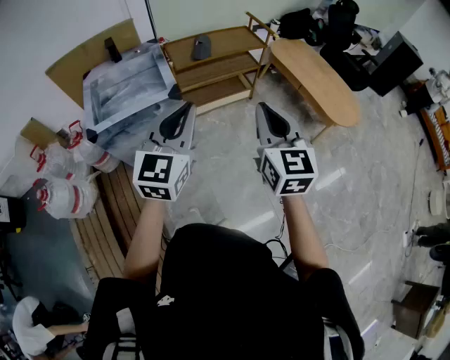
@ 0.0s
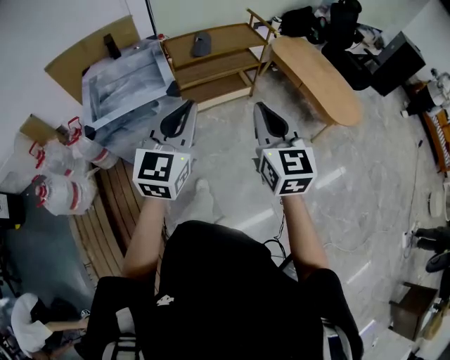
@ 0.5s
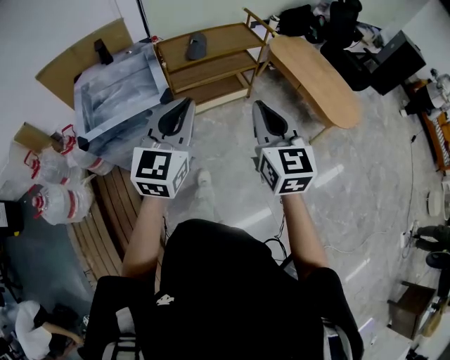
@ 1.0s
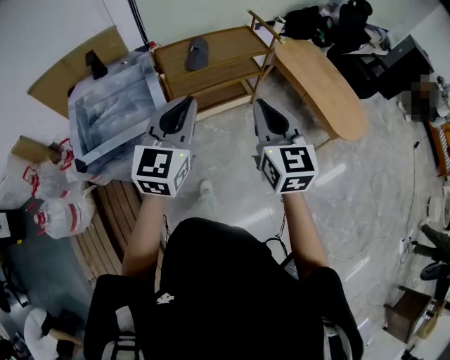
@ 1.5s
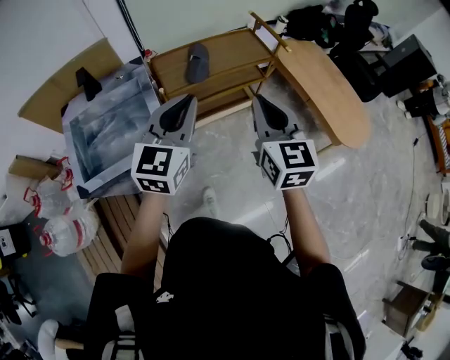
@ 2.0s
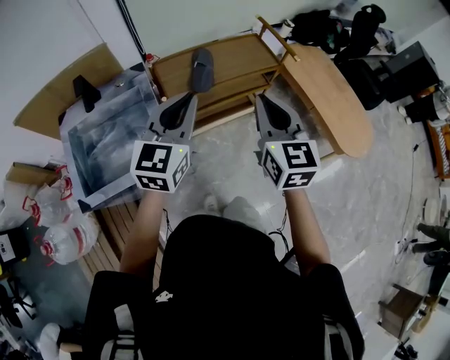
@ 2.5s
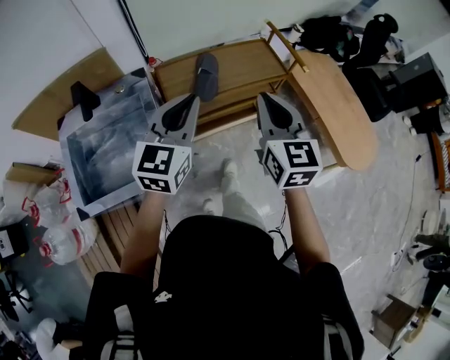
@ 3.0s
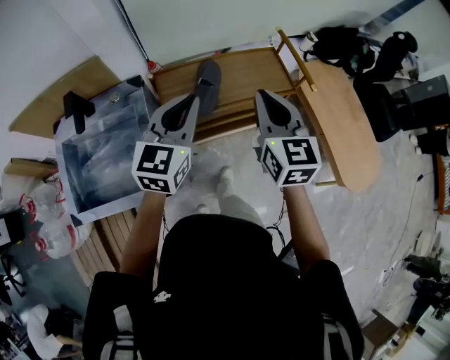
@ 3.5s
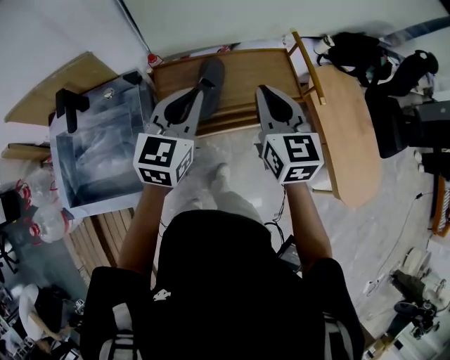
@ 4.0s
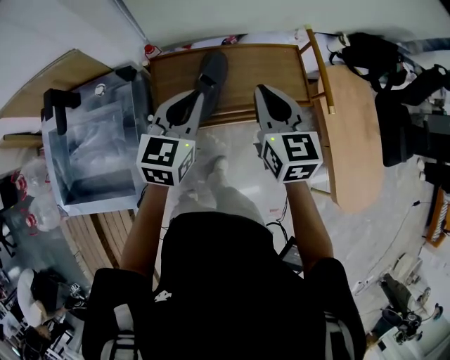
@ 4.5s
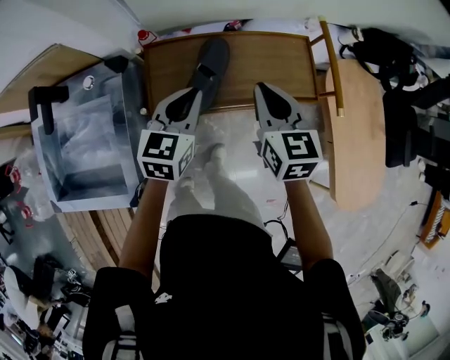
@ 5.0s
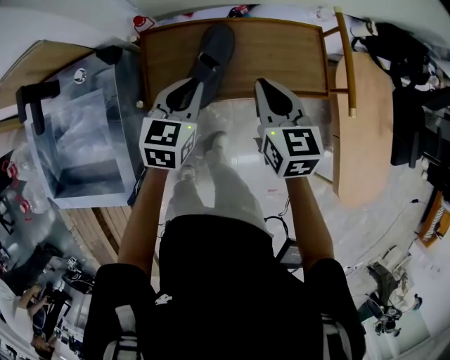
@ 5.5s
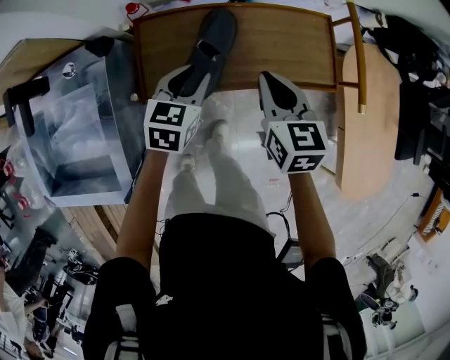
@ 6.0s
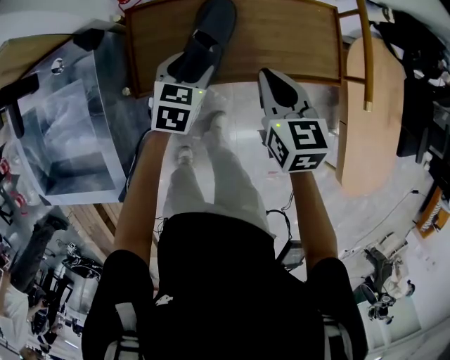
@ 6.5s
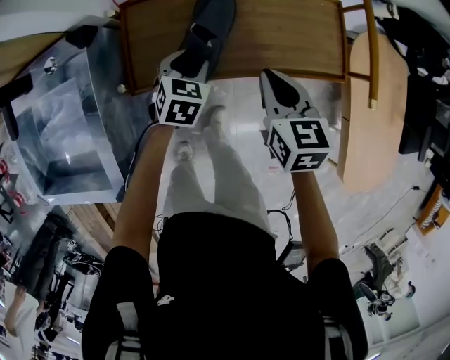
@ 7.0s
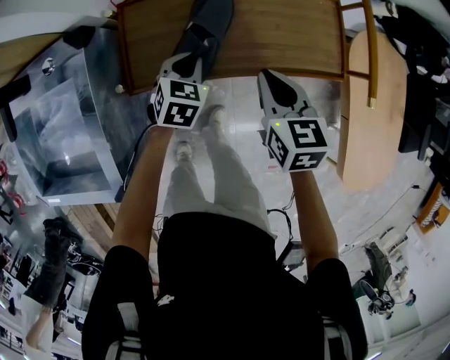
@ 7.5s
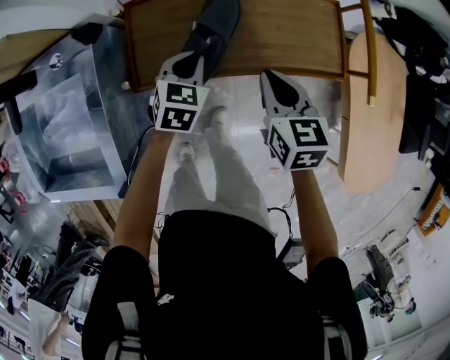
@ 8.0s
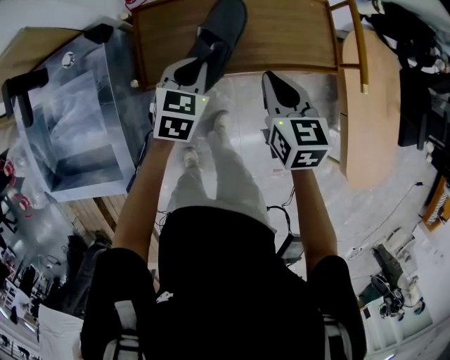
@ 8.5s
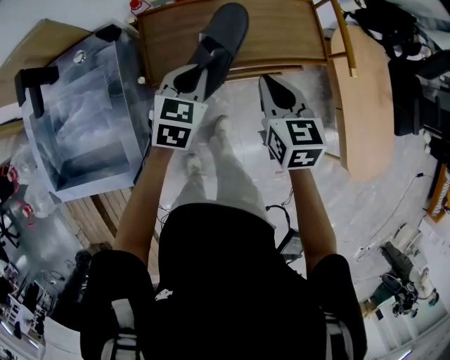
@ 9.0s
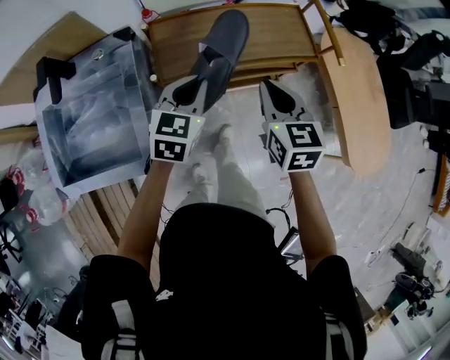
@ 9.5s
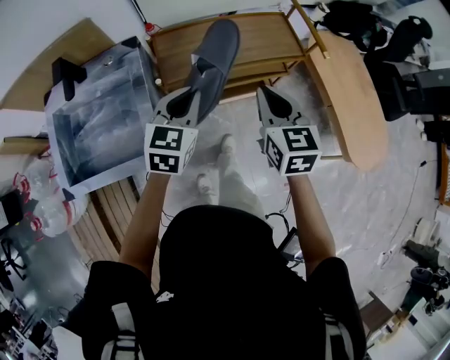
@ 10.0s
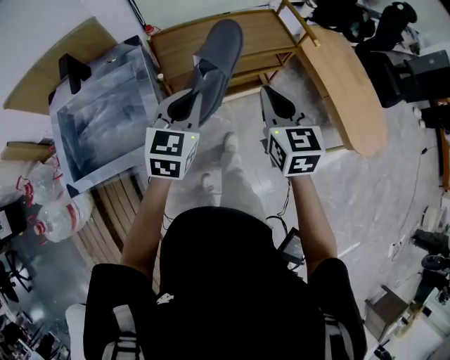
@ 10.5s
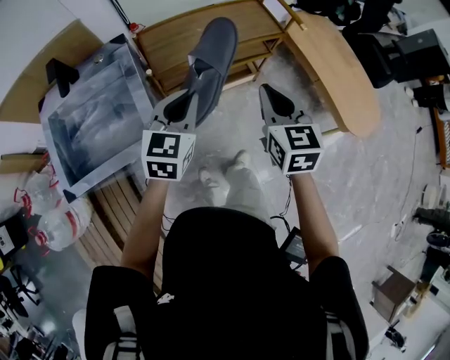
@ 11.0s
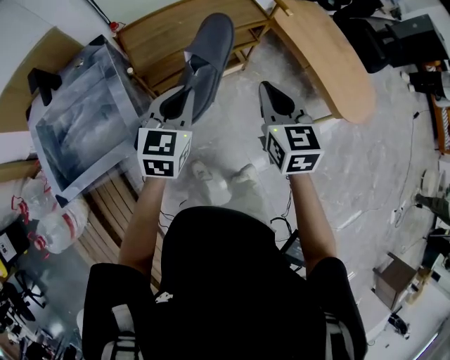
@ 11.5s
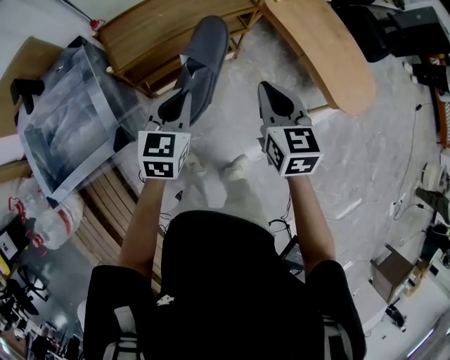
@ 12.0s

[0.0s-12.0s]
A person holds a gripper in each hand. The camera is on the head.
0.0s to 2.0s: The grippers both shift forward by roughly 30 cm.
2.0s to 4.0s: The two grippers go roughly 35 cm forward.
4.0s to 6.0s: The right gripper travels downward and forward by about 25 cm, and changes its angle by about 20 degrees. Meanwhile the left gripper goes about 30 cm downward, turns by some 30 degrees, and opens up.
6.0s to 8.0s: The right gripper shifts by approximately 5 cm. Meanwhile the left gripper goes approximately 5 cm downward, and opens, then closes again.
8.0s to 10.0s: The right gripper travels backward and upward by roughly 30 cm, and changes its angle by approximately 20 degrees; the left gripper travels upward and backward by roughly 35 cm, and turns by some 20 degrees.
10.0s to 12.0s: The grippers both shift to the right and backward by approximately 20 cm.

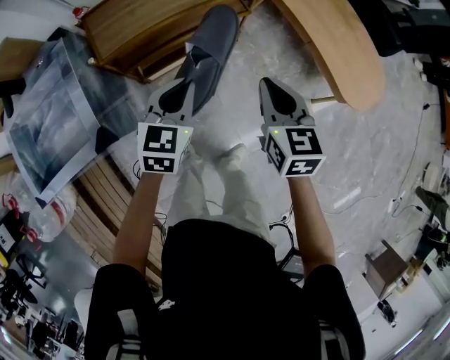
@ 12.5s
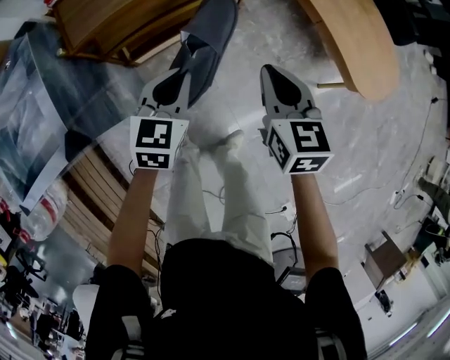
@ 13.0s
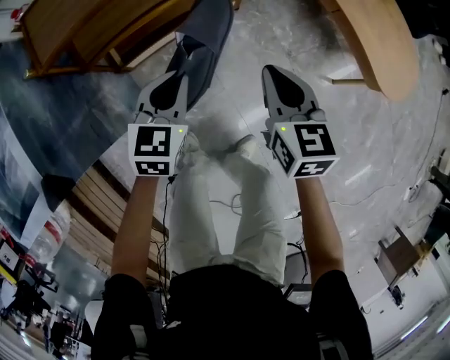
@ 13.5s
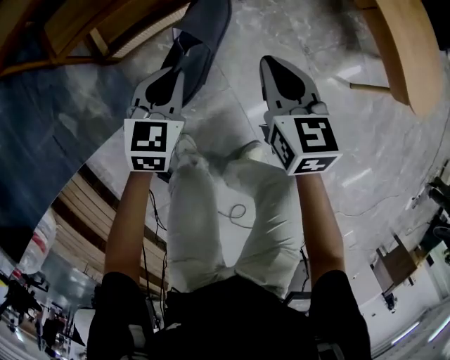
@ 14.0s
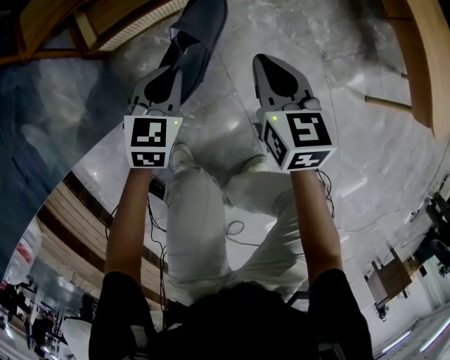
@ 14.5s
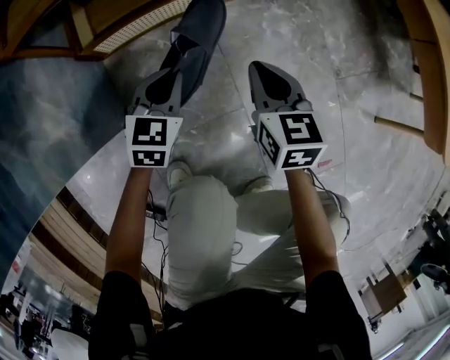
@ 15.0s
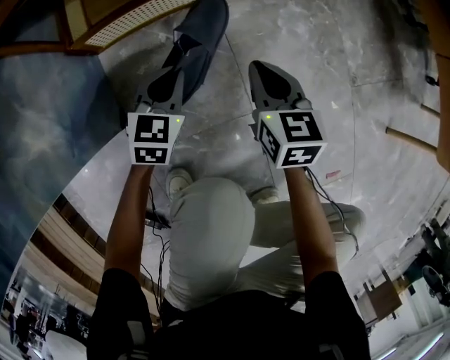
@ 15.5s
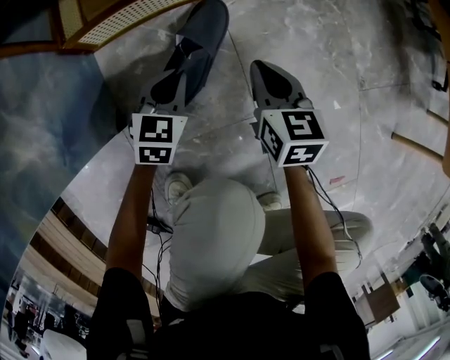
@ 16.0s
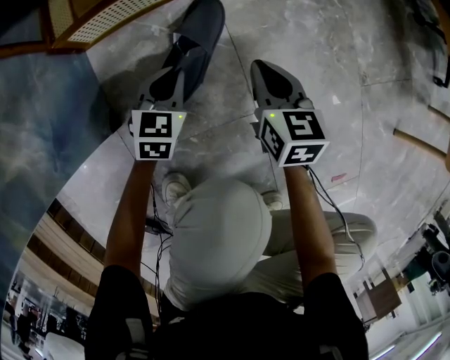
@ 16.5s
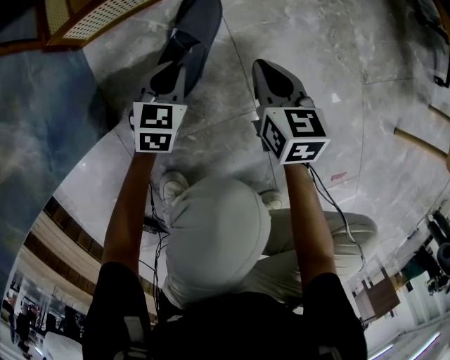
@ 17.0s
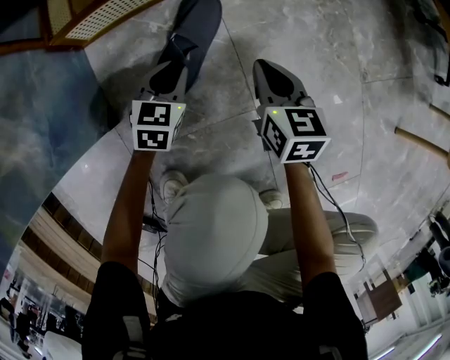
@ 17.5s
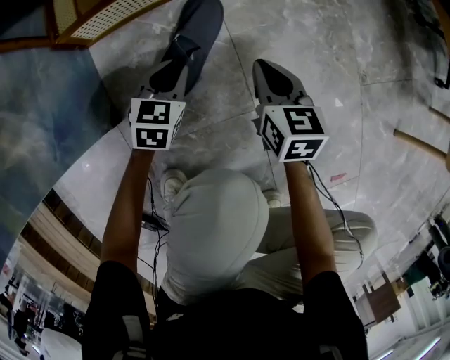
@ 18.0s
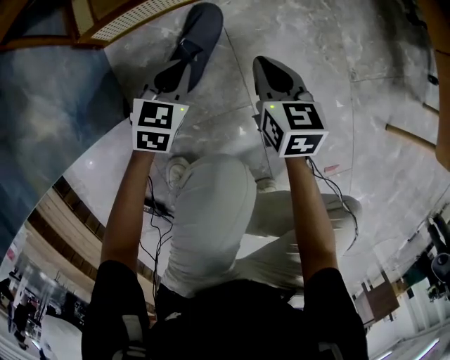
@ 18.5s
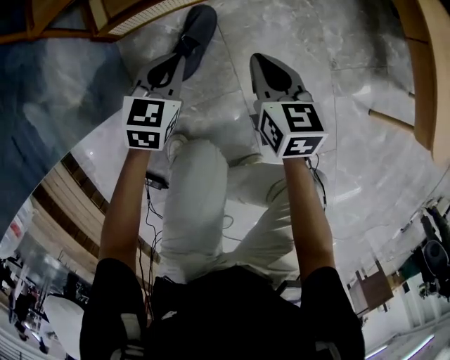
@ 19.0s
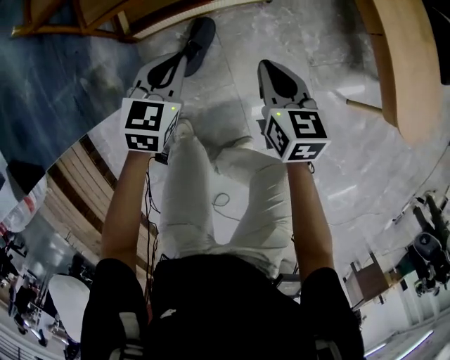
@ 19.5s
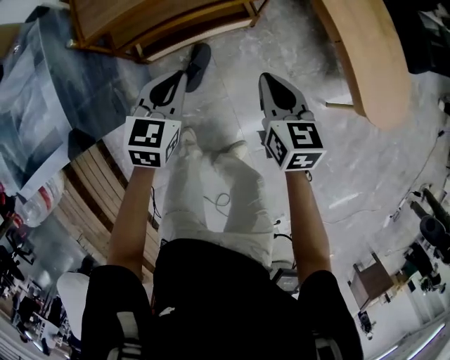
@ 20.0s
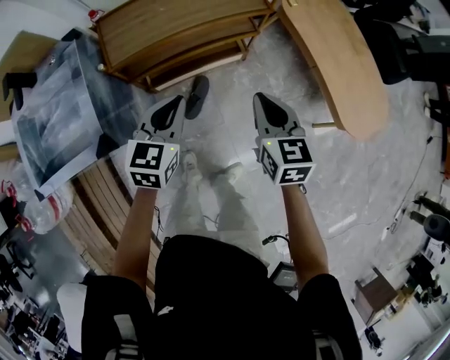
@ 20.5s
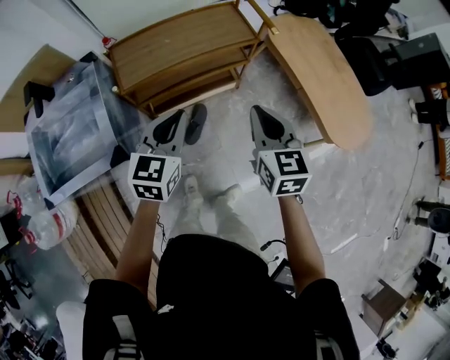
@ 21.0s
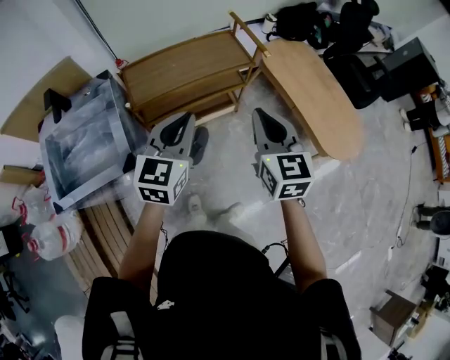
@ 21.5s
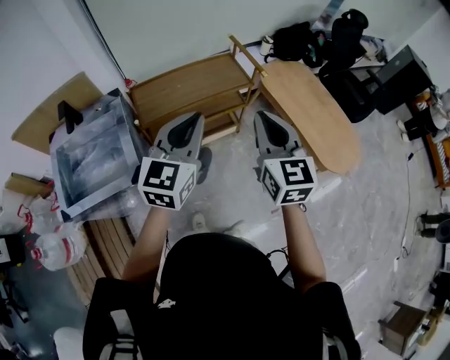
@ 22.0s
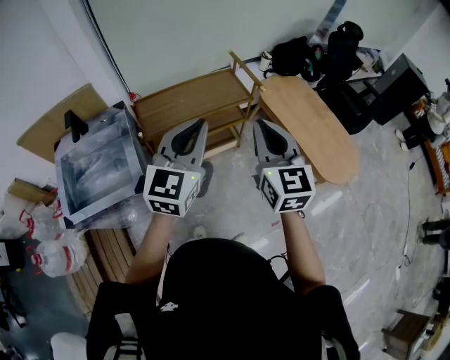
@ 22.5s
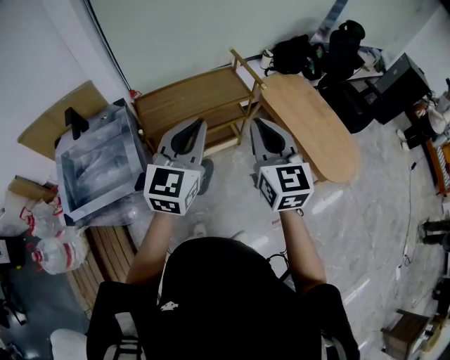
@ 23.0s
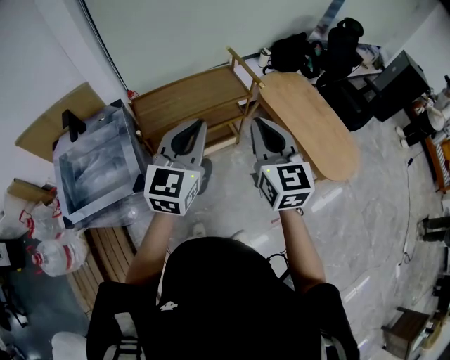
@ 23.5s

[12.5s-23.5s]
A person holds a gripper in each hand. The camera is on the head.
12.5s to 14.5s: The two grippers go about 50 cm downward.
14.5s to 16.0s: Both grippers travel together downward, some 20 cm.
16.0s to 18.0s: There are only small adjustments of the grippers.
18.0s to 20.0s: The two grippers go roughly 60 cm upward.
20.0s to 21.5s: The grippers both shift upward by some 35 cm. The right gripper turns by approximately 20 degrees; the left gripper turns by approximately 20 degrees.
21.5s to 23.5s: The two grippers go about 10 cm upward.

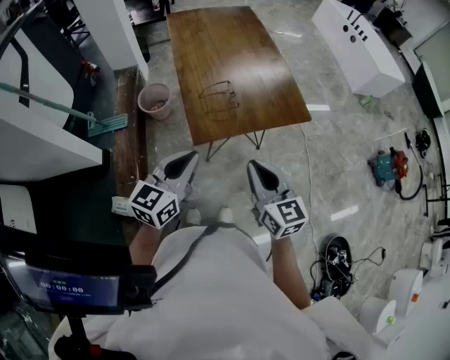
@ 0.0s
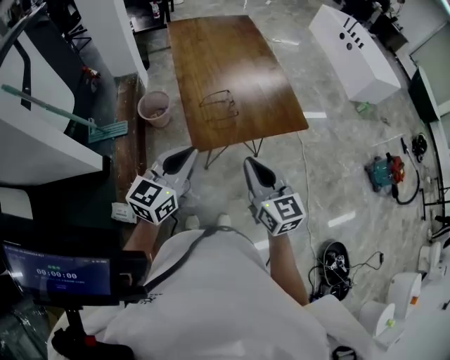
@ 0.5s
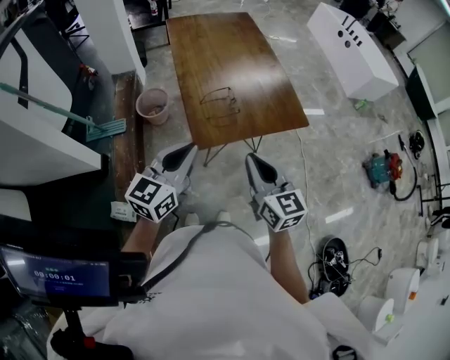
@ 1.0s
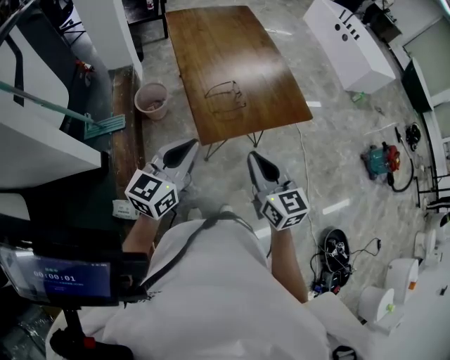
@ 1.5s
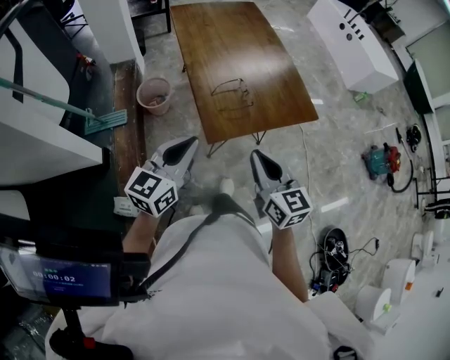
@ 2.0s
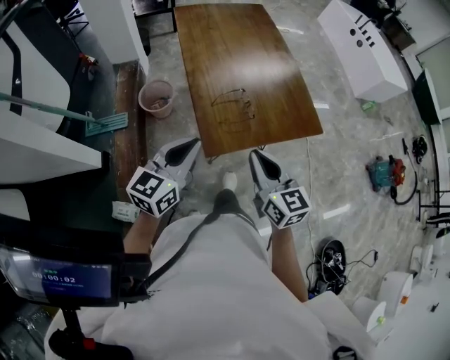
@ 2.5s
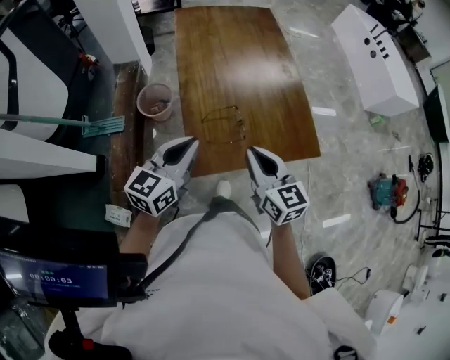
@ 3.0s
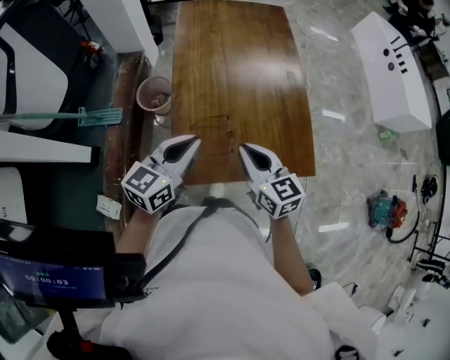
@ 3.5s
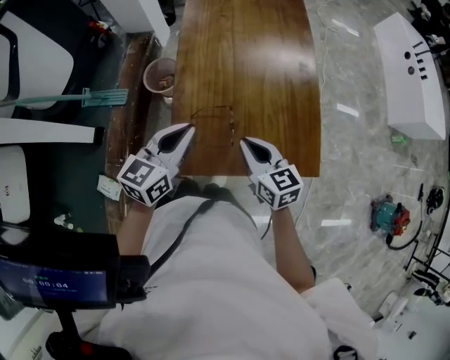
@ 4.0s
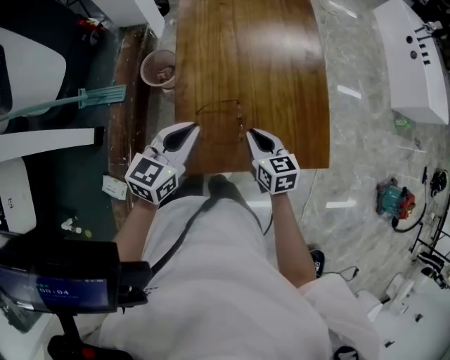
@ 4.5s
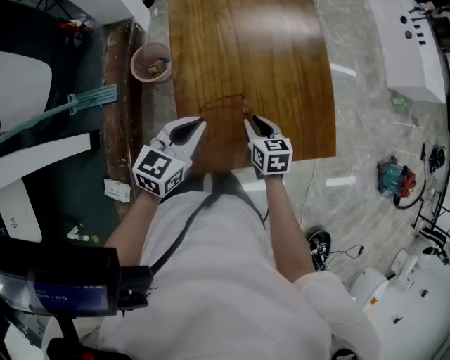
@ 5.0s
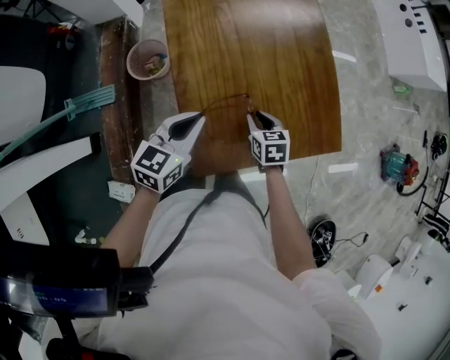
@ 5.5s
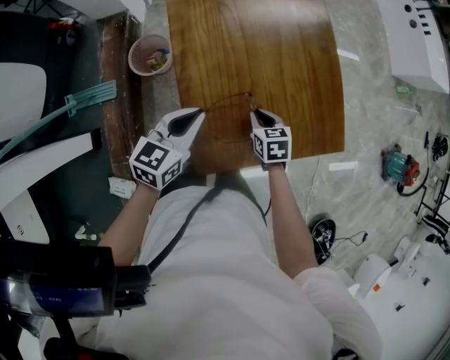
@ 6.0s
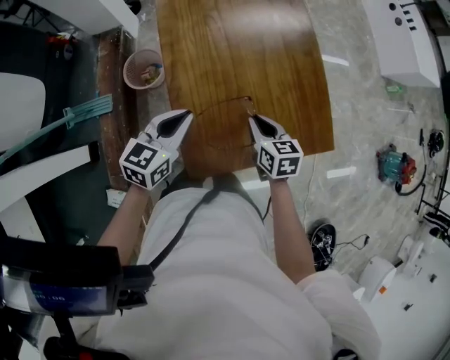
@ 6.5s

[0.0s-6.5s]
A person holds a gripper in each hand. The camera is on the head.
0.0s to 2.0s: The grippers both shift to the left by approximately 10 cm.
2.0s to 4.5s: The right gripper moves forward and downward, about 40 cm, and turns by some 30 degrees; the left gripper shifts roughly 30 cm forward and to the right.
4.5s to 6.5s: The left gripper moves forward, approximately 5 cm. The right gripper moves about 10 cm downward and comes back.
